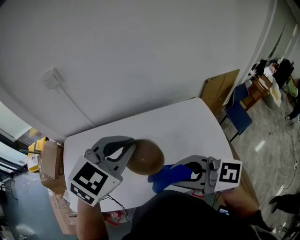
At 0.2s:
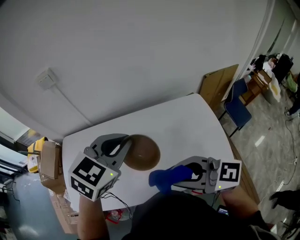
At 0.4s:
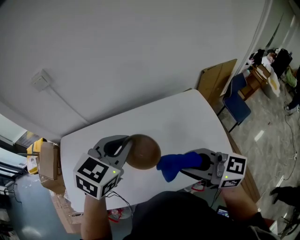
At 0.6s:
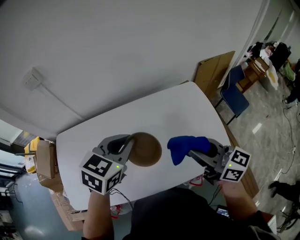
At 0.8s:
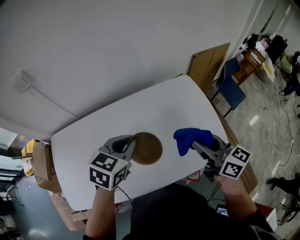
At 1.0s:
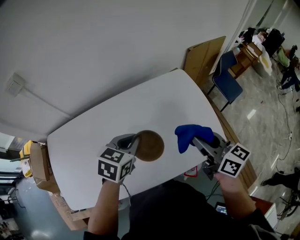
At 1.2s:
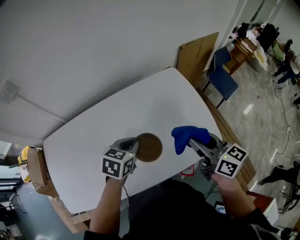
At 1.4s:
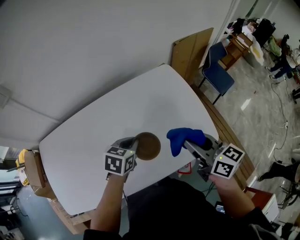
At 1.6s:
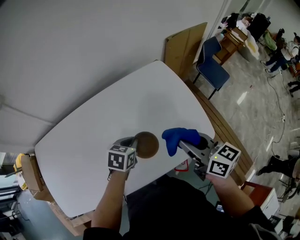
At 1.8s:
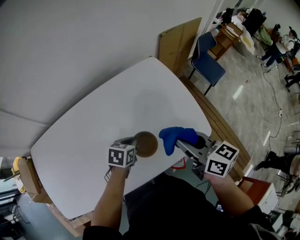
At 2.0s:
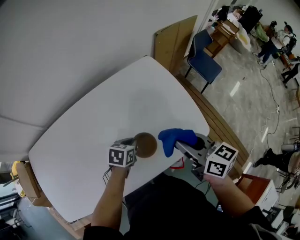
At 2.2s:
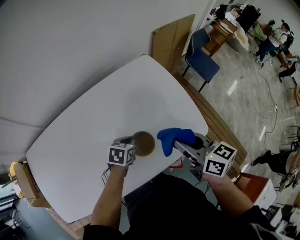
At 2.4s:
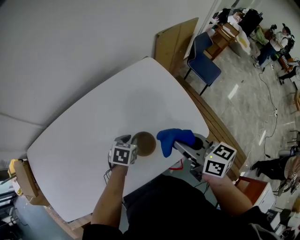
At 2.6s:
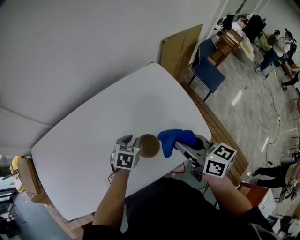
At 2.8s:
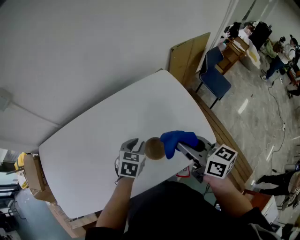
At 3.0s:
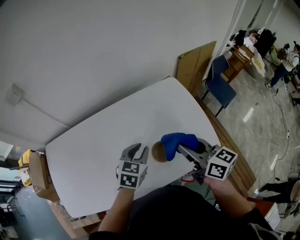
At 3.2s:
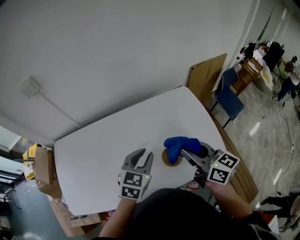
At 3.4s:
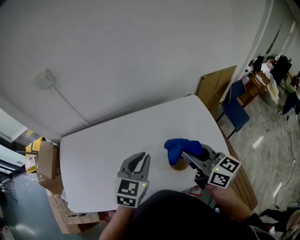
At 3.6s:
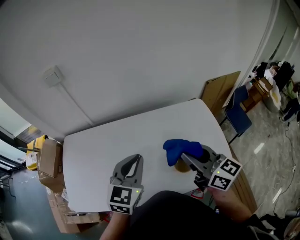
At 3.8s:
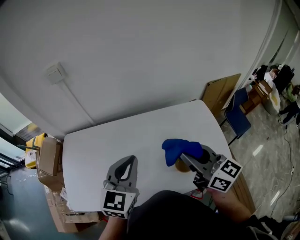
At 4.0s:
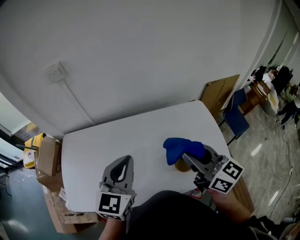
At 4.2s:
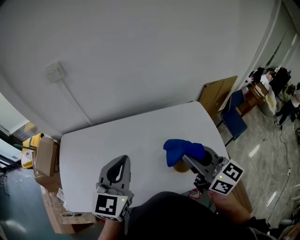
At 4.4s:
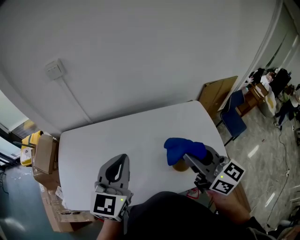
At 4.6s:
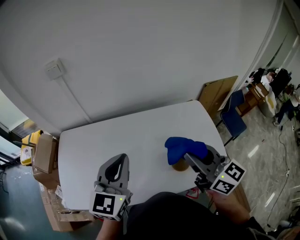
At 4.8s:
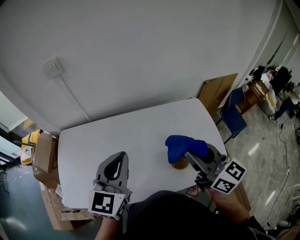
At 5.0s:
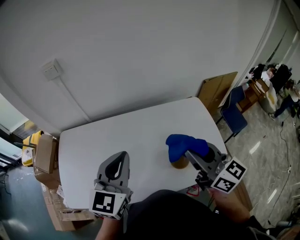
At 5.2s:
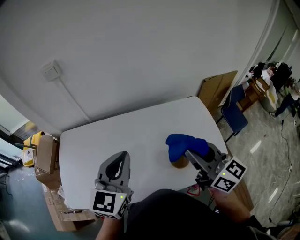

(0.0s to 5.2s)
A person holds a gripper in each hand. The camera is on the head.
0.0s - 1.8s: The right gripper ends up roughly 30 cm from where it was, and turns by approximately 60 degrees; the left gripper goes roughly 35 cm downward, and swivels approximately 40 degrees.
1.8s - 3.4s: The left gripper shifts roughly 25 cm upward and to the left, and swivels approximately 40 degrees. The right gripper travels to the left and upward by some 15 cm, and swivels approximately 20 degrees.
3.4s - 5.2s: The left gripper shifts some 15 cm upward and to the left, while the right gripper travels upward by approximately 5 cm.

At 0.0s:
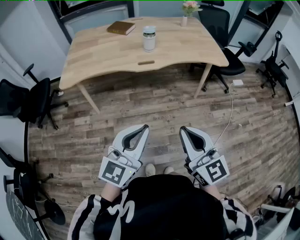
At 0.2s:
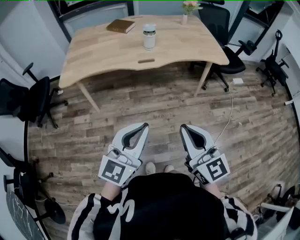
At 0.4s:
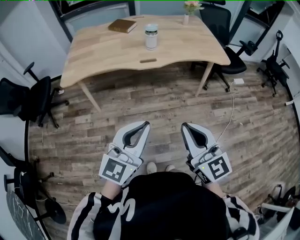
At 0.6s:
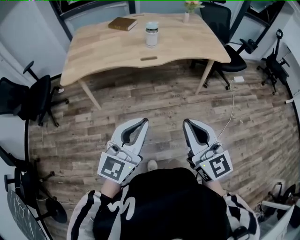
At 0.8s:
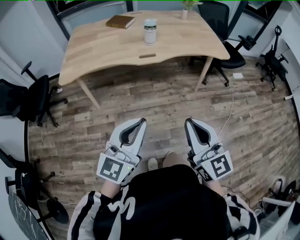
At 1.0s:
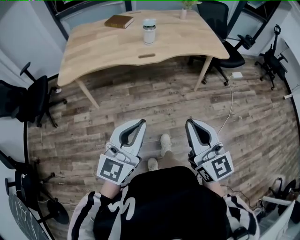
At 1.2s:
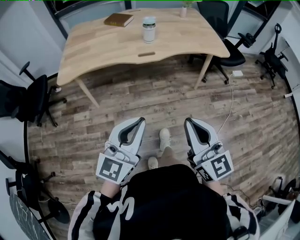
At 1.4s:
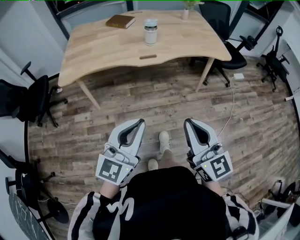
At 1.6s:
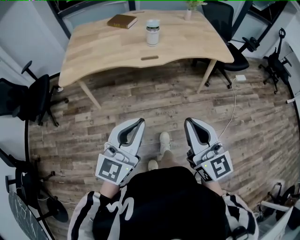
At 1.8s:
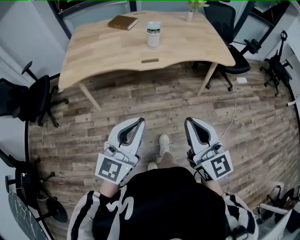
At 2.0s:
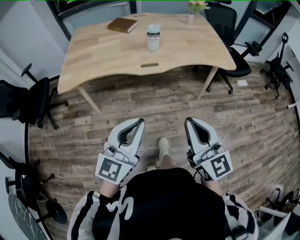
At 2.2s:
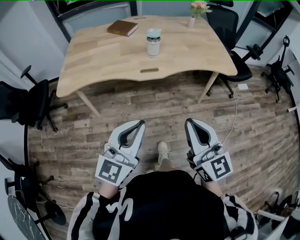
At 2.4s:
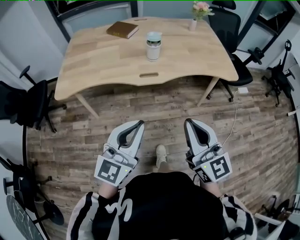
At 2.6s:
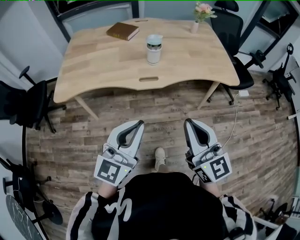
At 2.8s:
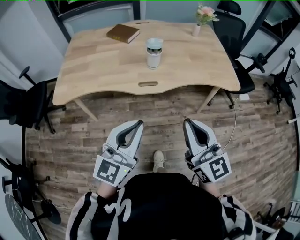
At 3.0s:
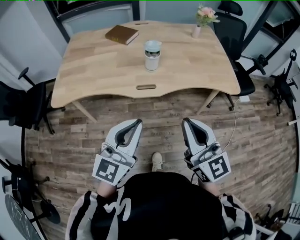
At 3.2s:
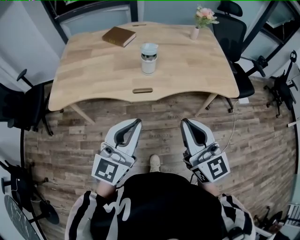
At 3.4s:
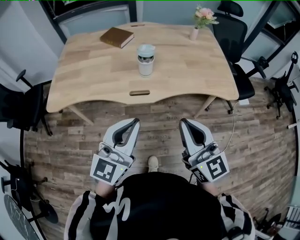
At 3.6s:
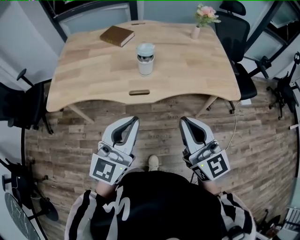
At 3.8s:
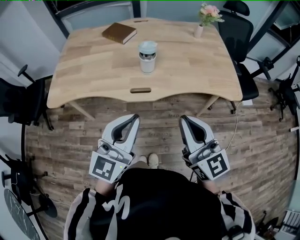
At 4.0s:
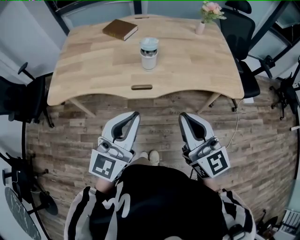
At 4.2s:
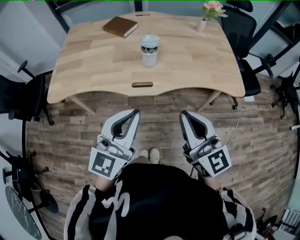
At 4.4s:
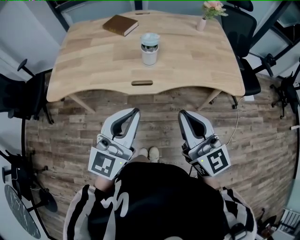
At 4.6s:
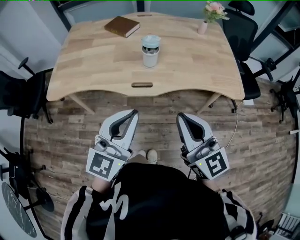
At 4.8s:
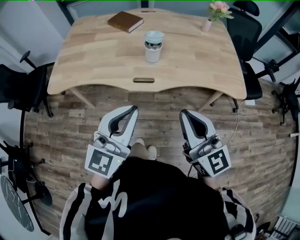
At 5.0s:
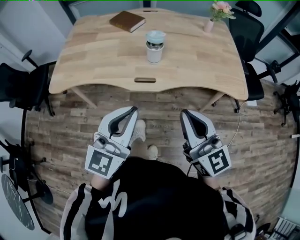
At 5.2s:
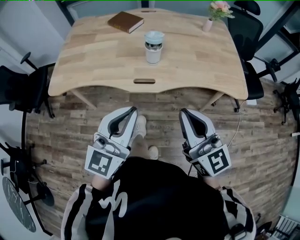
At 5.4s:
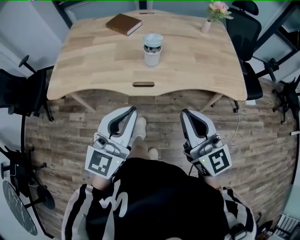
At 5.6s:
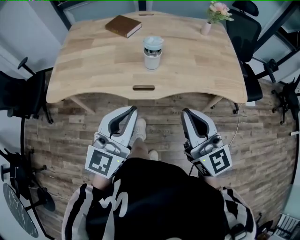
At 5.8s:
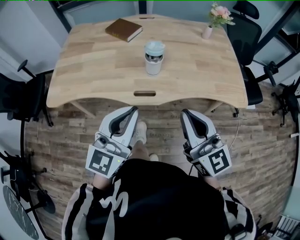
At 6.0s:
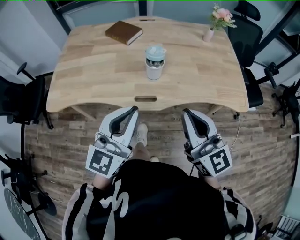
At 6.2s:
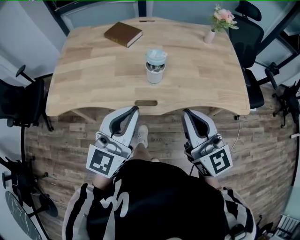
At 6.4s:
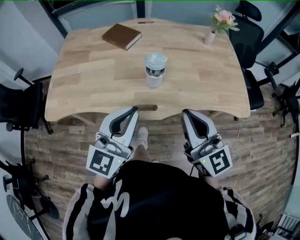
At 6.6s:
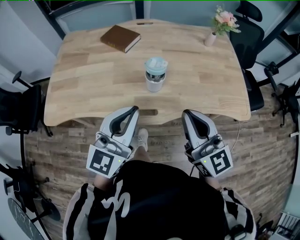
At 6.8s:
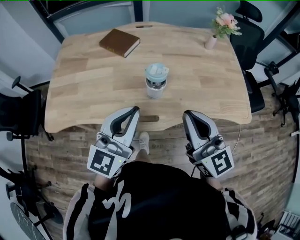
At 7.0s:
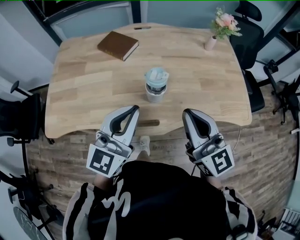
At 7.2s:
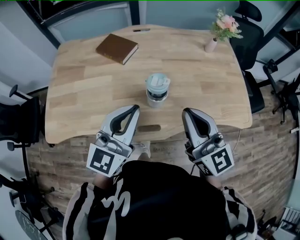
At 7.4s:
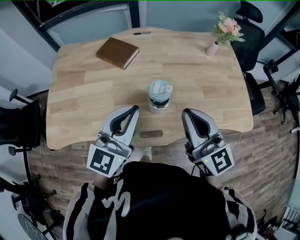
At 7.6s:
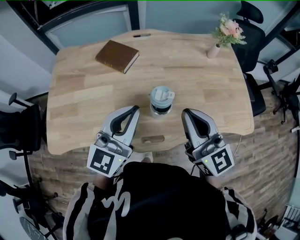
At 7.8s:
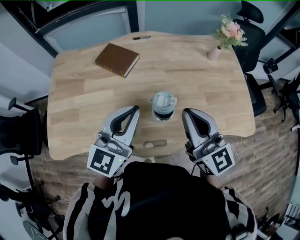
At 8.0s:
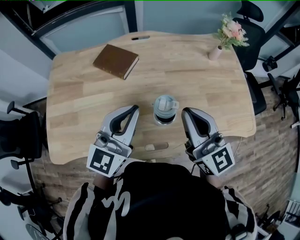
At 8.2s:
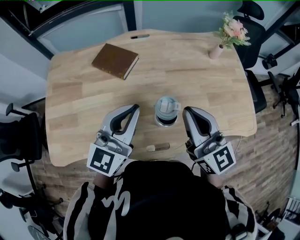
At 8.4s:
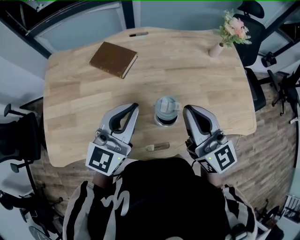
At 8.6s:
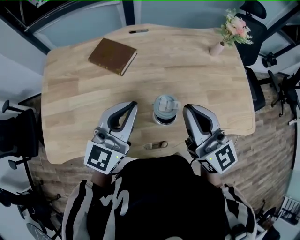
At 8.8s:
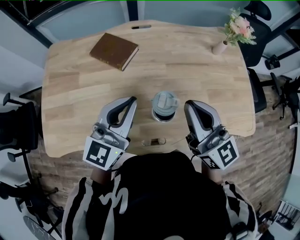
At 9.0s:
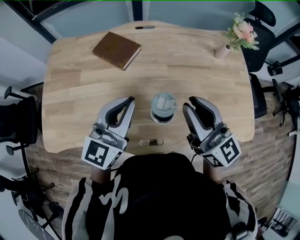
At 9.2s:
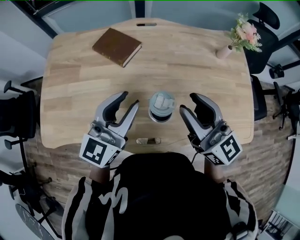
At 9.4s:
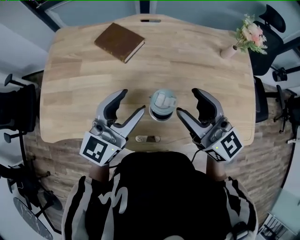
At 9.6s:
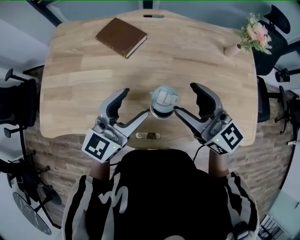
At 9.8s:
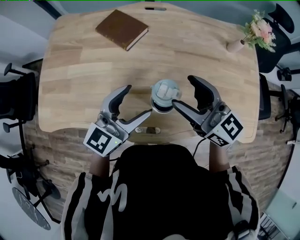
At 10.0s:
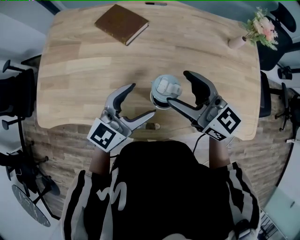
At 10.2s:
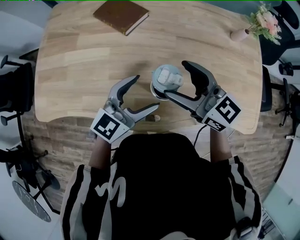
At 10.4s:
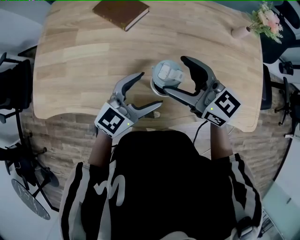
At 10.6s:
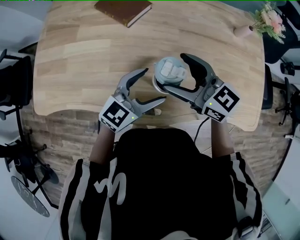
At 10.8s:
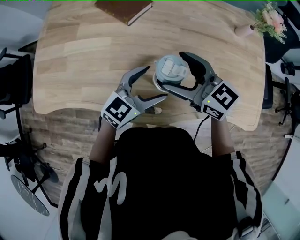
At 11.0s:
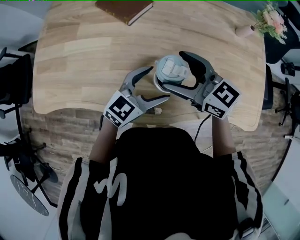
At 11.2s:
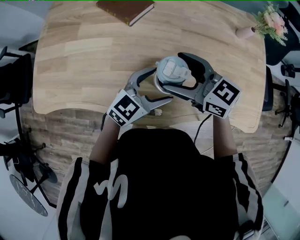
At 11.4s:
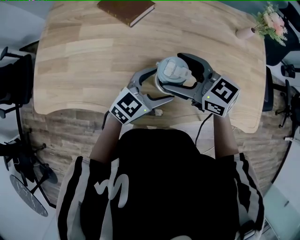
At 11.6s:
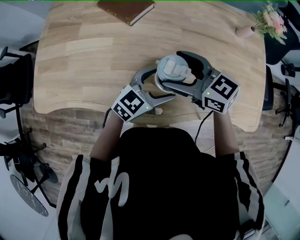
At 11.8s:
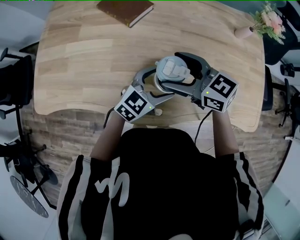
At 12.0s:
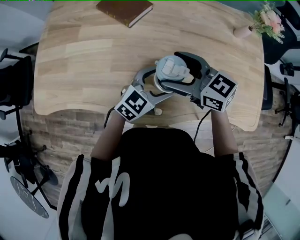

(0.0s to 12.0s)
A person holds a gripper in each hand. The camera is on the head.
0.0s - 1.6s: The left gripper moves about 5 cm.
1.6s - 3.0s: Both grippers move forward, approximately 20 cm.
3.0s - 4.4s: The two grippers go about 5 cm forward.
4.4s - 6.0s: Both grippers travel together forward, some 10 cm.
6.0s - 7.6s: The grippers both shift forward by roughly 25 cm.
7.6s - 9.0s: The two grippers go about 5 cm forward.
9.0s - 10.4s: The left gripper heads downward and to the right, covering about 15 cm, swivels some 20 degrees, and opens its fingers. Meanwhile the right gripper is displaced downward by some 10 cm, changes its angle by roughly 30 degrees, and opens.
10.4s - 12.0s: The left gripper heads downward, covering some 5 cm.

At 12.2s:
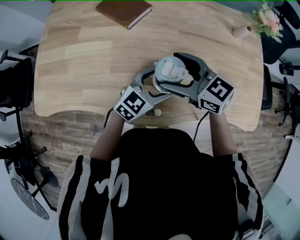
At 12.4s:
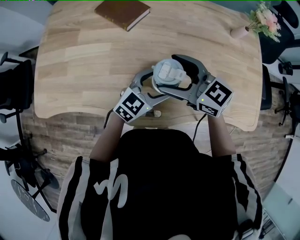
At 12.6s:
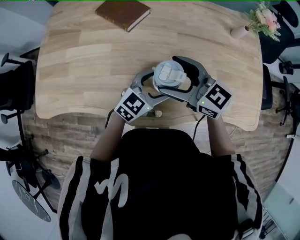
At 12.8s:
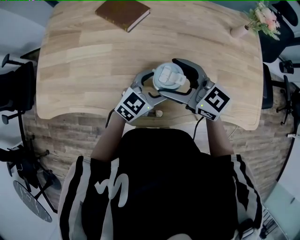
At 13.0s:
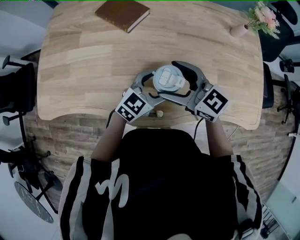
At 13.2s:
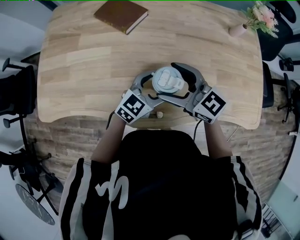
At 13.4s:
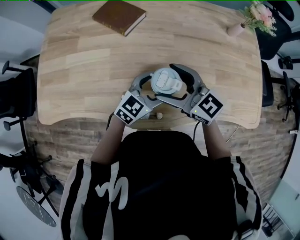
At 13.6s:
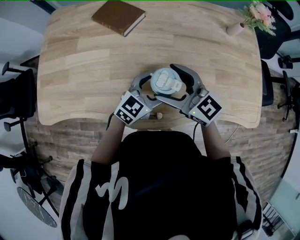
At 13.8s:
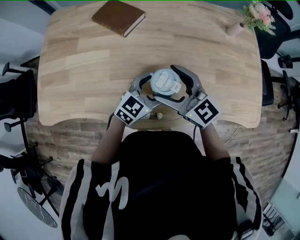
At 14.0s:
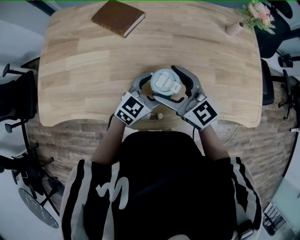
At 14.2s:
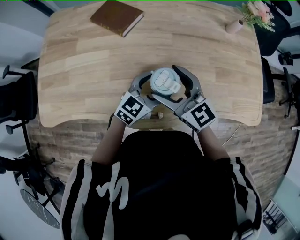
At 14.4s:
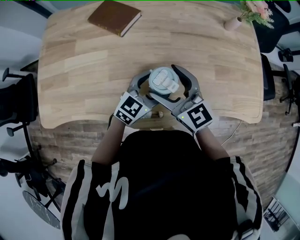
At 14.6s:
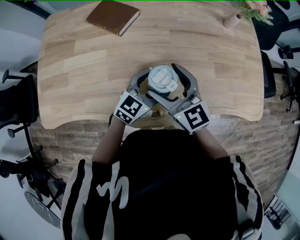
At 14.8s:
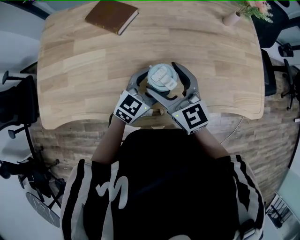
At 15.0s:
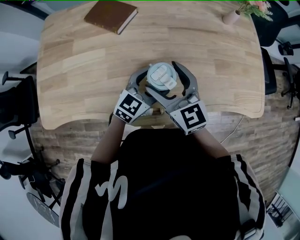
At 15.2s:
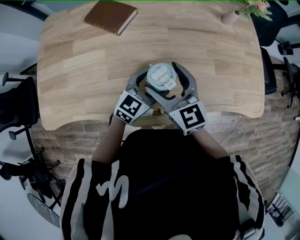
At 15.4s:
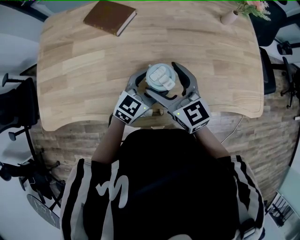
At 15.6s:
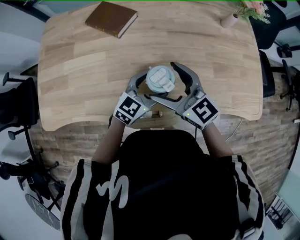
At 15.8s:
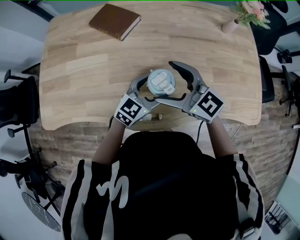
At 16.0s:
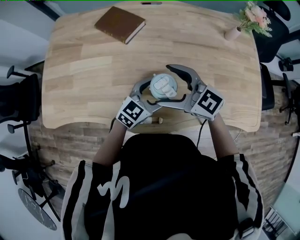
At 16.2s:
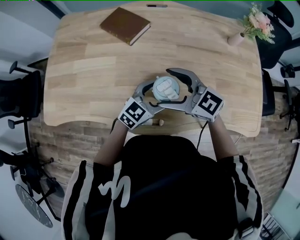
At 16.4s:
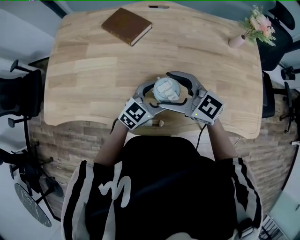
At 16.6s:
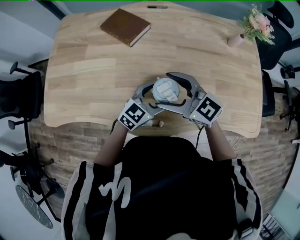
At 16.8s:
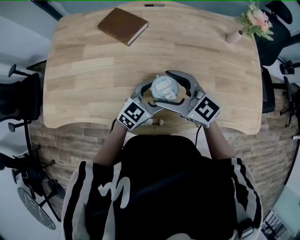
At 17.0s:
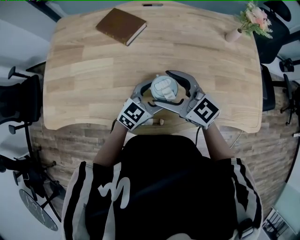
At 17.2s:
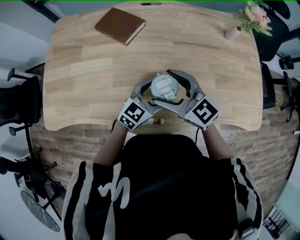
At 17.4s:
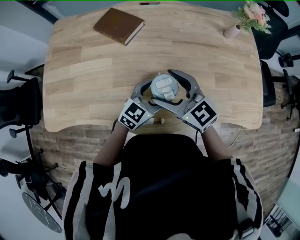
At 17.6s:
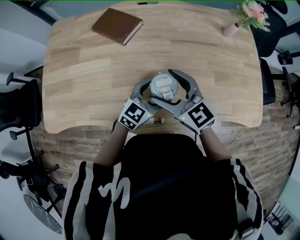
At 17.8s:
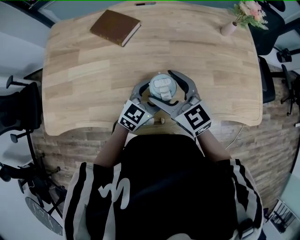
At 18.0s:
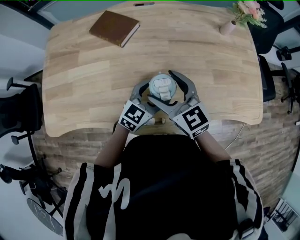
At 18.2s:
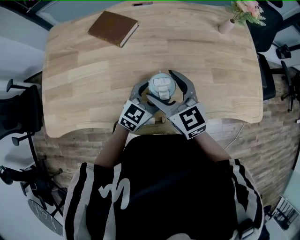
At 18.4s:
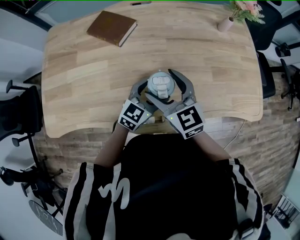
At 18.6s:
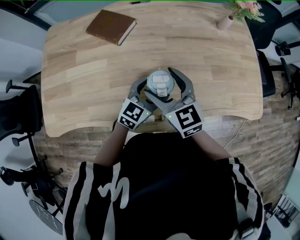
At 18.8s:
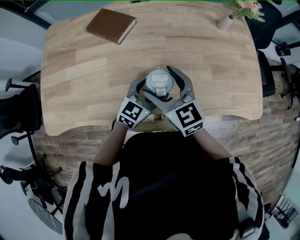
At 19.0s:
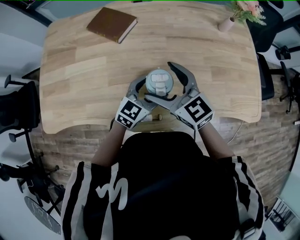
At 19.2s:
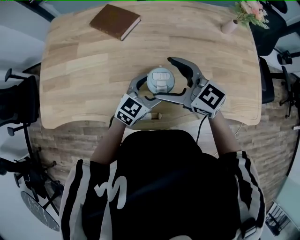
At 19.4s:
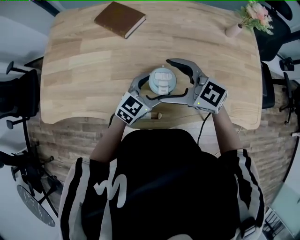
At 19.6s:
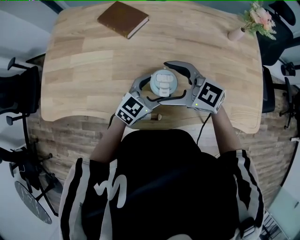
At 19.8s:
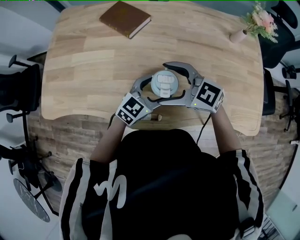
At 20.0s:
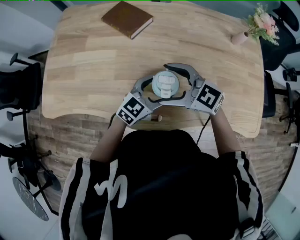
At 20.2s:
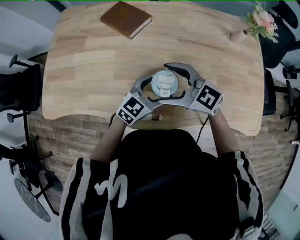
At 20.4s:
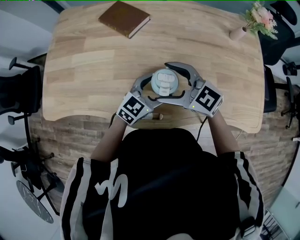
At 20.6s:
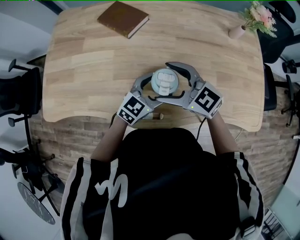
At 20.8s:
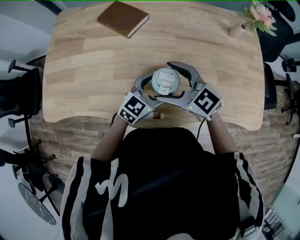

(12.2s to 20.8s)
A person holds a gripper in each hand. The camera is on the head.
12.2s - 13.6s: The grippers move only a little.
13.6s - 15.0s: The right gripper rotates some 20 degrees.
15.0s - 16.6s: The right gripper rotates some 30 degrees.
16.6s - 18.0s: The right gripper swivels roughly 30 degrees.
18.0s - 19.4s: The right gripper turns by approximately 30 degrees.
19.4s - 20.8s: The grippers move only a little.
